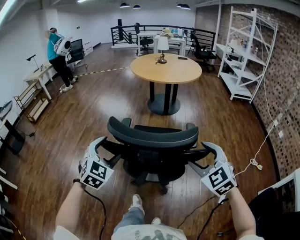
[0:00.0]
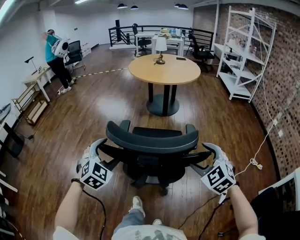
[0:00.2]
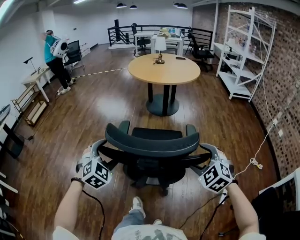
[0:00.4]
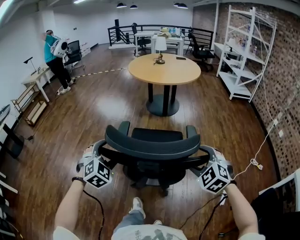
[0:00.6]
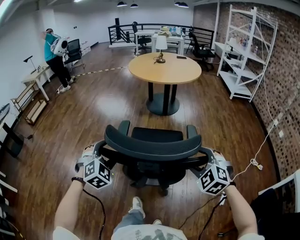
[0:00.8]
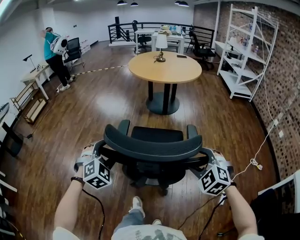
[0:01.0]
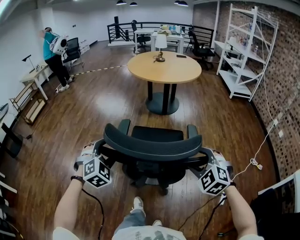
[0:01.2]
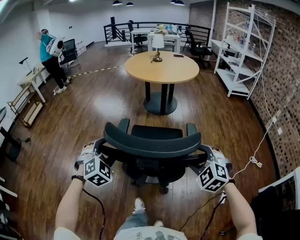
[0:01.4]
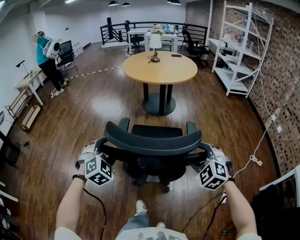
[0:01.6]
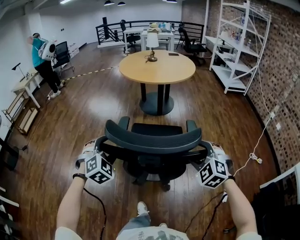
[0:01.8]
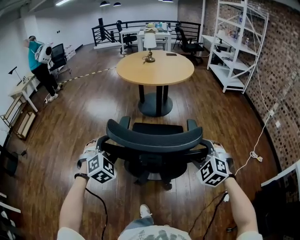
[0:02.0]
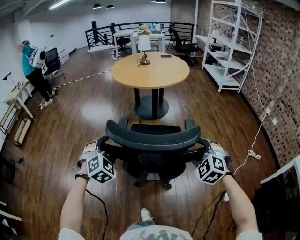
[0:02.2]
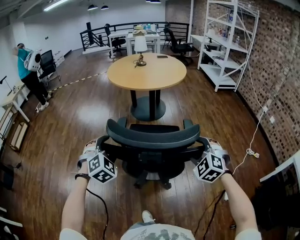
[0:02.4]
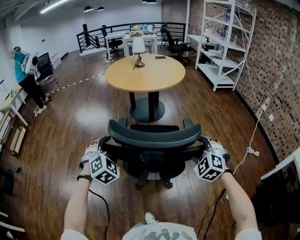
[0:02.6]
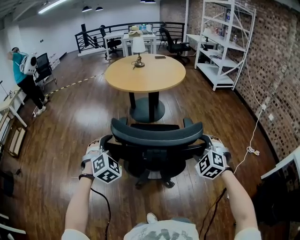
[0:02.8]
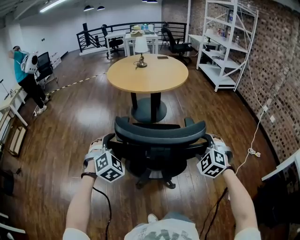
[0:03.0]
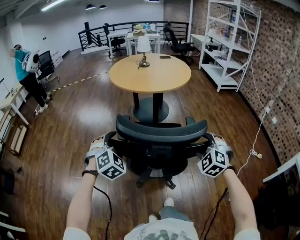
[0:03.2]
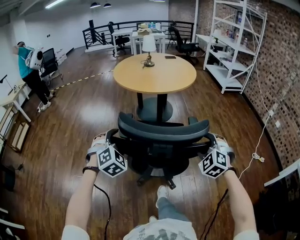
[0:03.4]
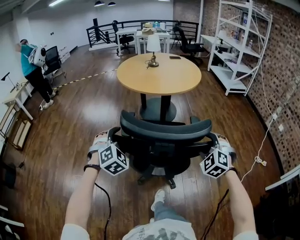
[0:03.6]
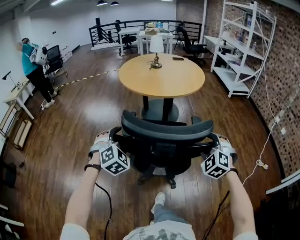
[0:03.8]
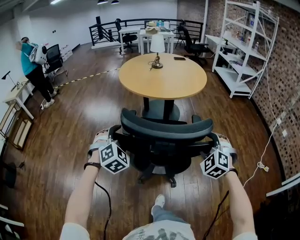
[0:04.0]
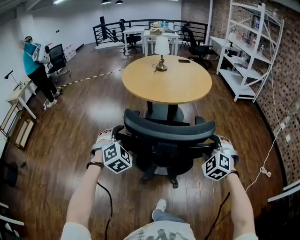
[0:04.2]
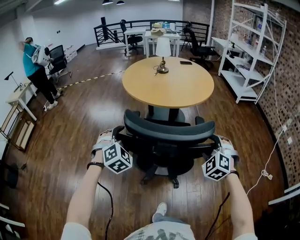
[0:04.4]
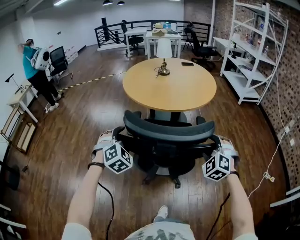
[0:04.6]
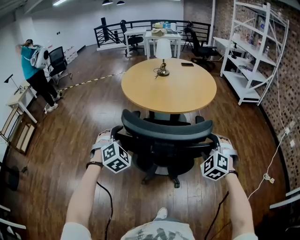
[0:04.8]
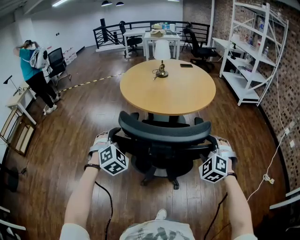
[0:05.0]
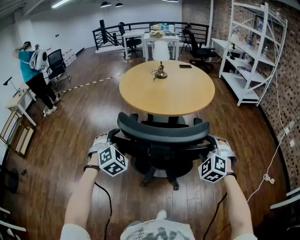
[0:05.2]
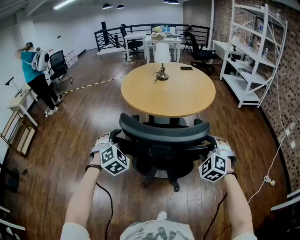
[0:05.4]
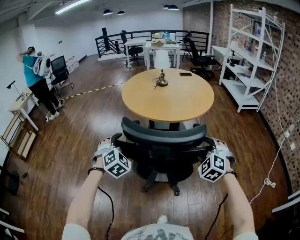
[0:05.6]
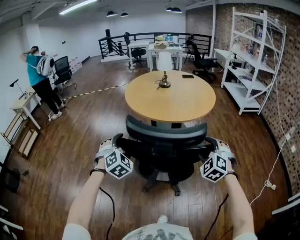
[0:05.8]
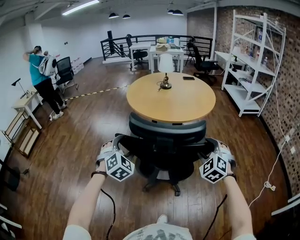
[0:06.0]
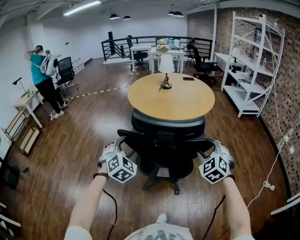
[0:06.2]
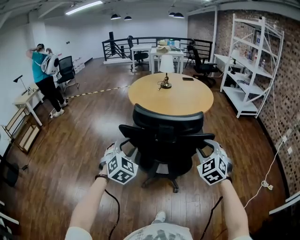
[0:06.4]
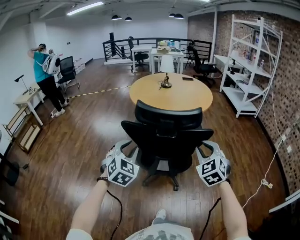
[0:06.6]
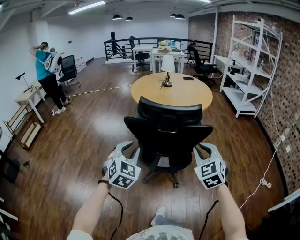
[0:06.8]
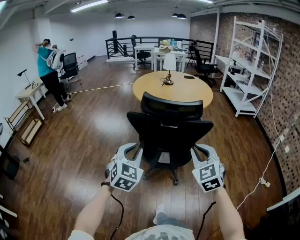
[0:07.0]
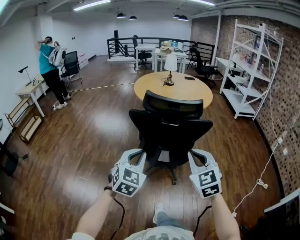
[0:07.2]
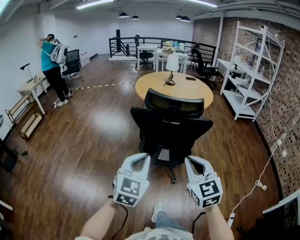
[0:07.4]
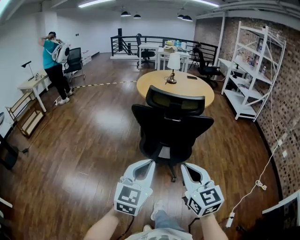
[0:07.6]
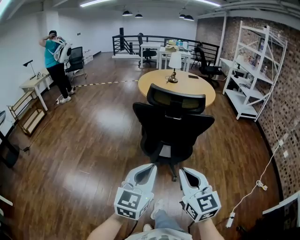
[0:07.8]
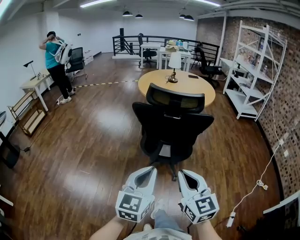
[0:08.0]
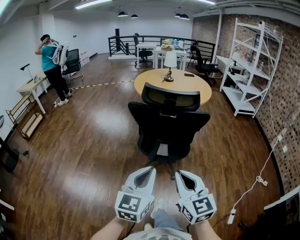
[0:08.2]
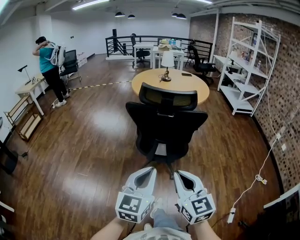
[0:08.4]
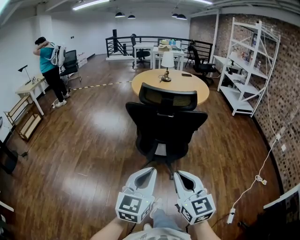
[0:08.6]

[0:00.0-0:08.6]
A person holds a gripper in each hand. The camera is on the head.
0:00.0 to 0:01.4: The right gripper goes approximately 10 cm forward and downward. Meanwhile the left gripper goes about 10 cm forward, and rotates roughly 20 degrees.
0:01.4 to 0:02.8: The two grippers go approximately 20 cm forward.
0:02.8 to 0:04.4: Both grippers move forward, roughly 25 cm.
0:04.4 to 0:05.8: The right gripper changes place by approximately 5 cm.
0:05.8 to 0:07.2: The left gripper heads backward, covering approximately 30 cm, turns by some 30 degrees, and closes, while the right gripper heads backward and to the left, covering approximately 30 cm, turns by about 40 degrees, and closes its fingers.
0:07.2 to 0:08.6: The left gripper is displaced backward and to the right by some 15 cm, and turns by approximately 30 degrees. Meanwhile the right gripper shifts approximately 15 cm backward, and swivels about 20 degrees.

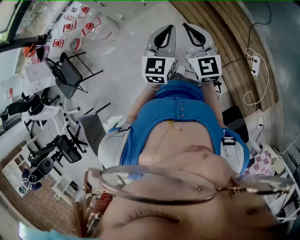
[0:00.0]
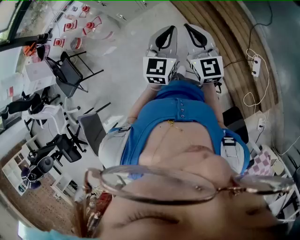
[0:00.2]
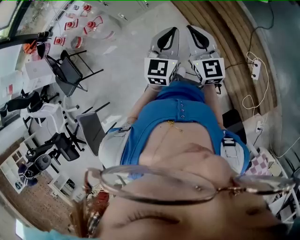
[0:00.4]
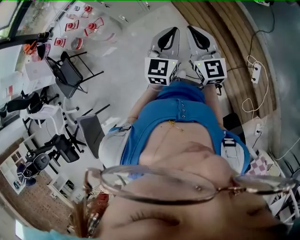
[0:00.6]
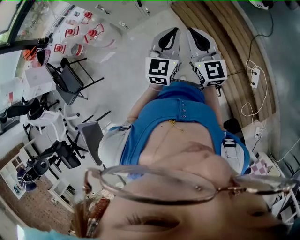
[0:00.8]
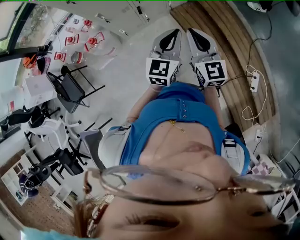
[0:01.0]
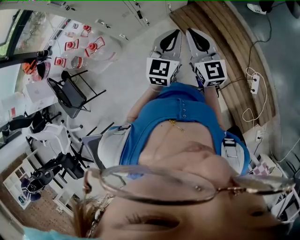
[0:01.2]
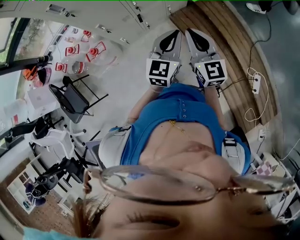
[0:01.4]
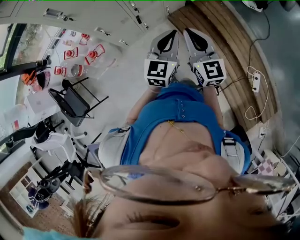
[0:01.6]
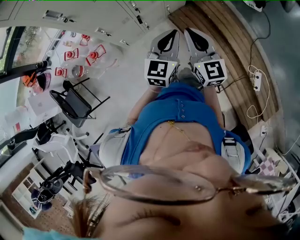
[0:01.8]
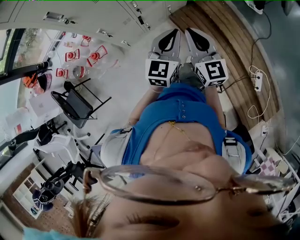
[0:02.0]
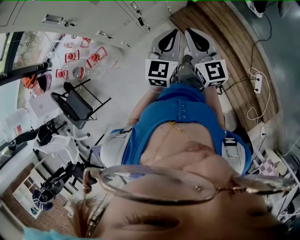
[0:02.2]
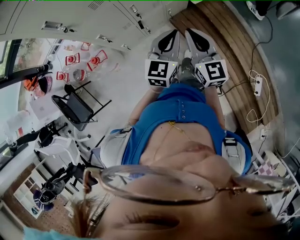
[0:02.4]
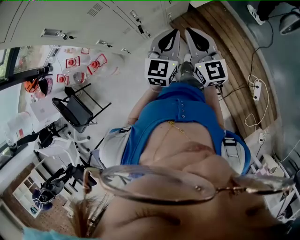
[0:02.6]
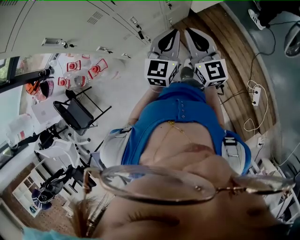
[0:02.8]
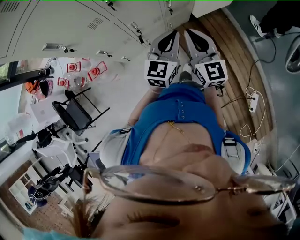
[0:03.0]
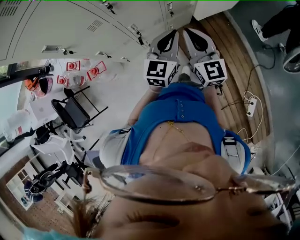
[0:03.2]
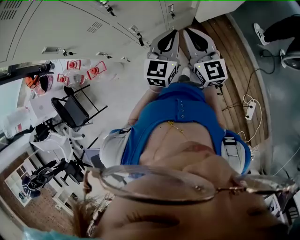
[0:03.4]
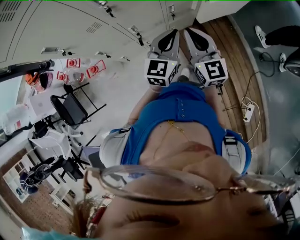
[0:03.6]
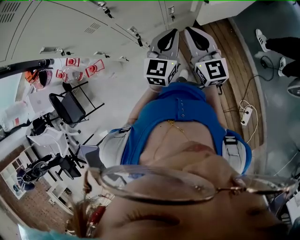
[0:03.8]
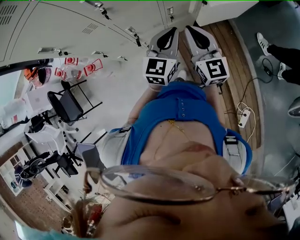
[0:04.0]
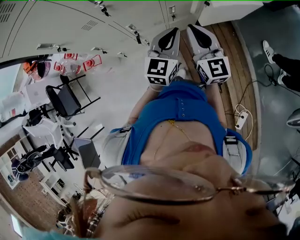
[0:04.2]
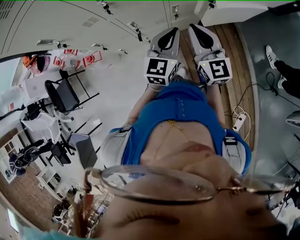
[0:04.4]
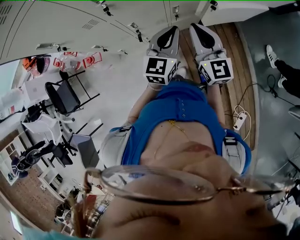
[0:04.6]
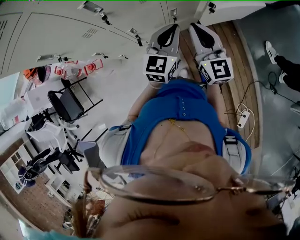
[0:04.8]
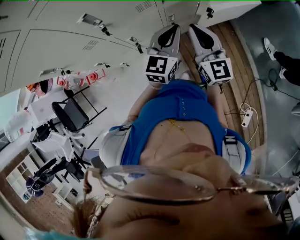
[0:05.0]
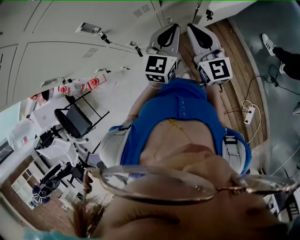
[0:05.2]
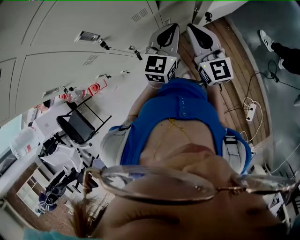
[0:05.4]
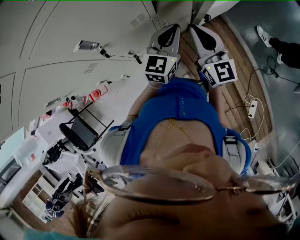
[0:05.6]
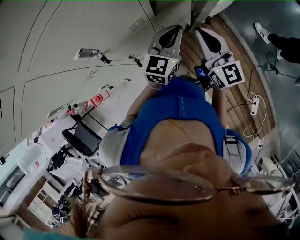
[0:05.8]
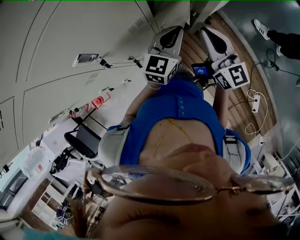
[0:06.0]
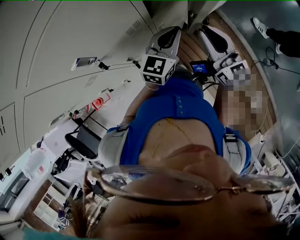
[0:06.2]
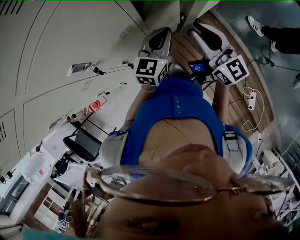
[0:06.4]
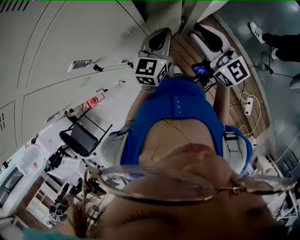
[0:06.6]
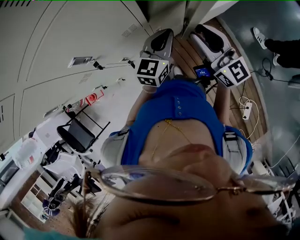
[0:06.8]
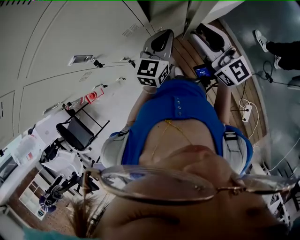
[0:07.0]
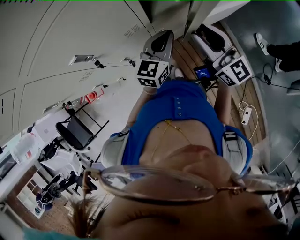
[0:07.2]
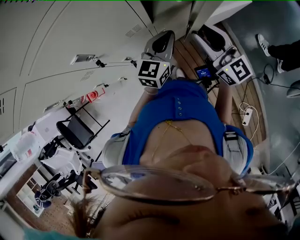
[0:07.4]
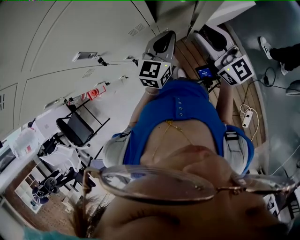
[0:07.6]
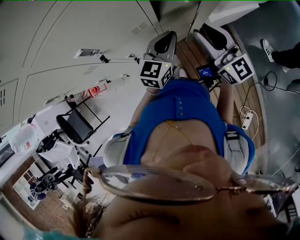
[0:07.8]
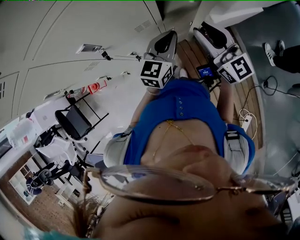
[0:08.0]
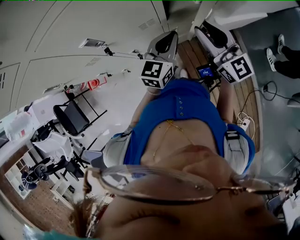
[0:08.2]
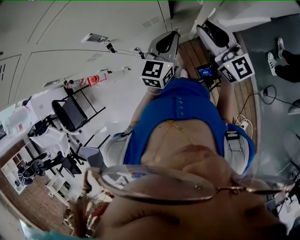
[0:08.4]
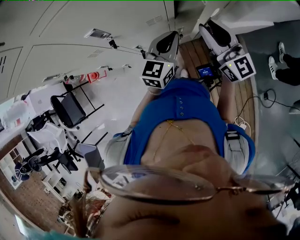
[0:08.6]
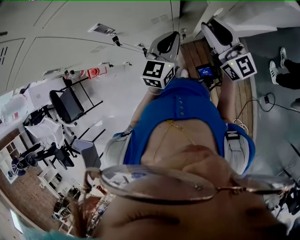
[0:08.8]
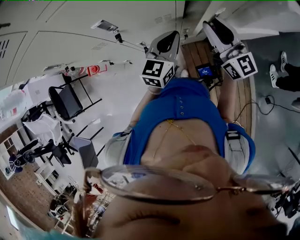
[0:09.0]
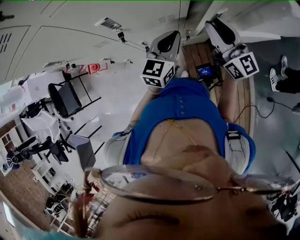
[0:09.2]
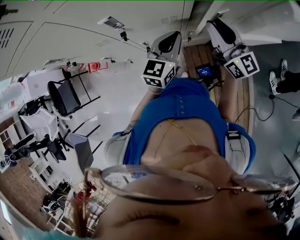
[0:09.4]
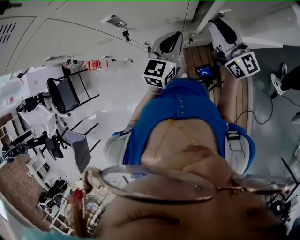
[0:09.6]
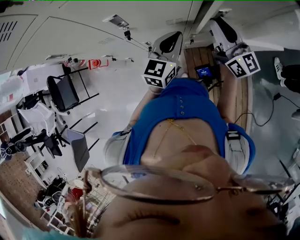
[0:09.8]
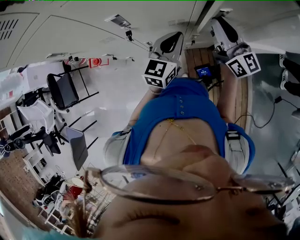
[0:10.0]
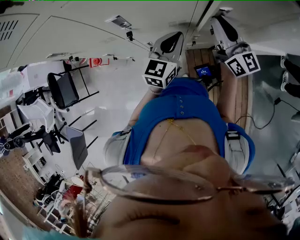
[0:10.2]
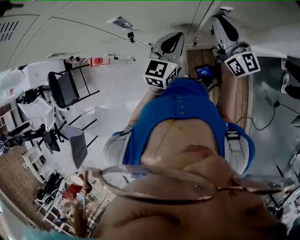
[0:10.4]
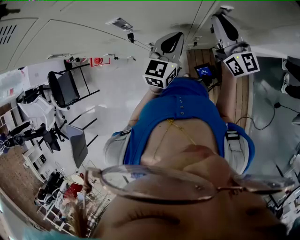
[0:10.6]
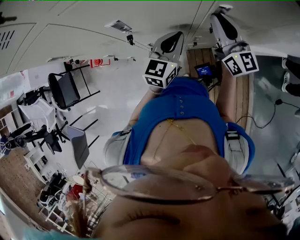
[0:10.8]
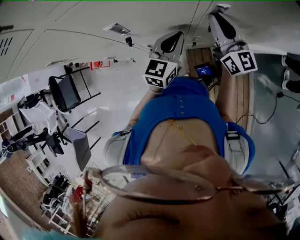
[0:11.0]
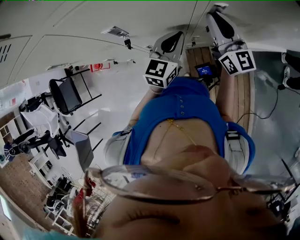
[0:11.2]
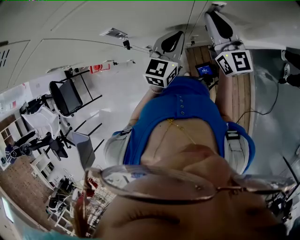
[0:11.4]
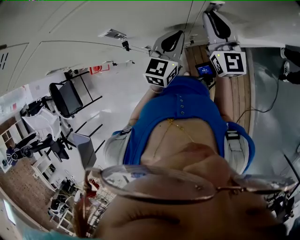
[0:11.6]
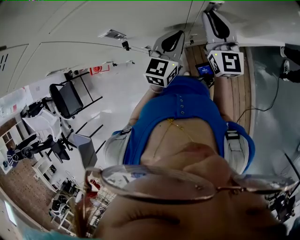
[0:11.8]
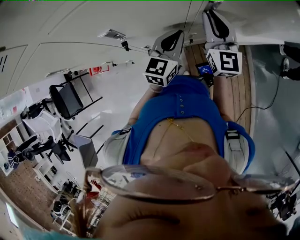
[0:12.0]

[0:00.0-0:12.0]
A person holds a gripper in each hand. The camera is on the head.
0:00.0 to 0:01.6: Both grippers travel together forward, approximately 20 cm.
0:01.6 to 0:03.0: Both grippers travel together forward, about 20 cm.
0:03.0 to 0:04.4: The right gripper travels forward and to the right by approximately 15 cm, while the left gripper shifts approximately 10 cm forward.
0:04.4 to 0:06.0: Both grippers move forward, about 10 cm. The left gripper swivels roughly 30 degrees.
0:06.0 to 0:07.6: The right gripper shifts by approximately 5 cm, turns by some 20 degrees, and opens up.
0:07.6 to 0:09.0: The left gripper goes some 10 cm to the left. The right gripper goes some 10 cm to the left and forward.
0:09.0 to 0:10.4: The right gripper heads forward, covering roughly 5 cm.
0:10.4 to 0:12.0: The right gripper changes its angle by approximately 30 degrees.

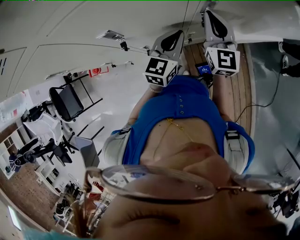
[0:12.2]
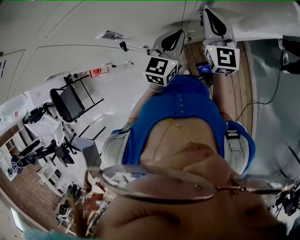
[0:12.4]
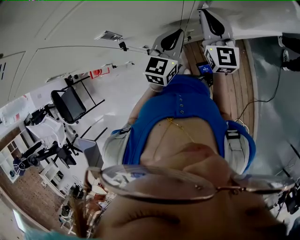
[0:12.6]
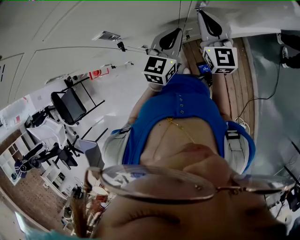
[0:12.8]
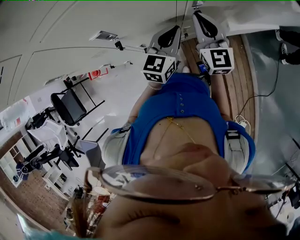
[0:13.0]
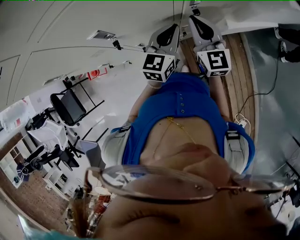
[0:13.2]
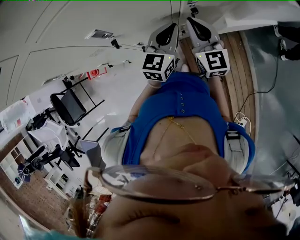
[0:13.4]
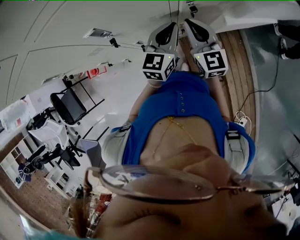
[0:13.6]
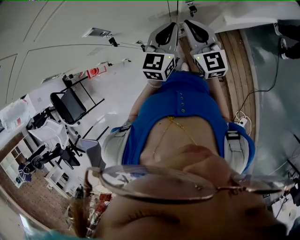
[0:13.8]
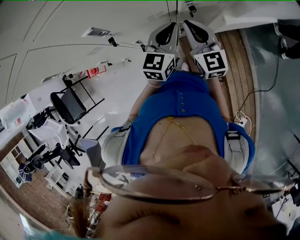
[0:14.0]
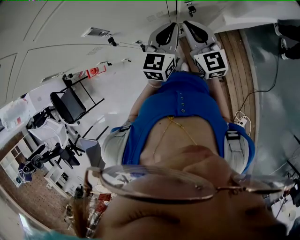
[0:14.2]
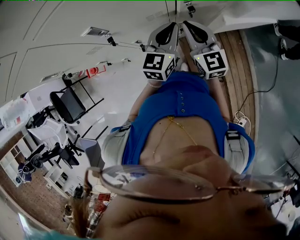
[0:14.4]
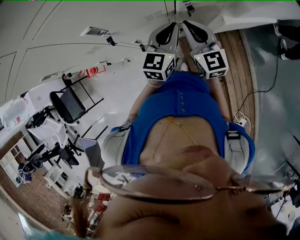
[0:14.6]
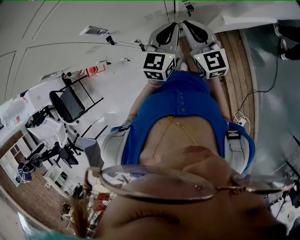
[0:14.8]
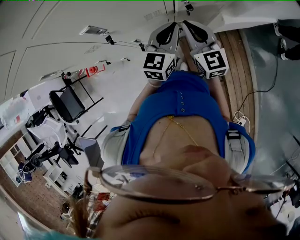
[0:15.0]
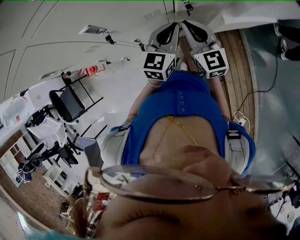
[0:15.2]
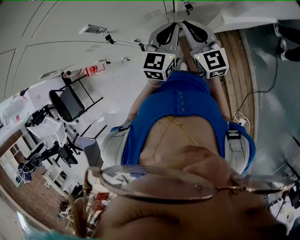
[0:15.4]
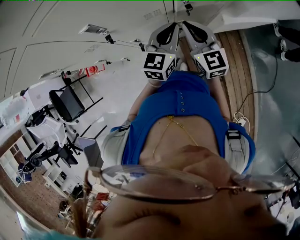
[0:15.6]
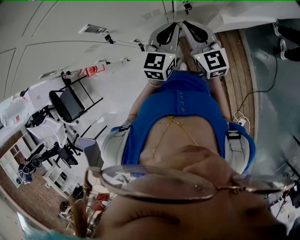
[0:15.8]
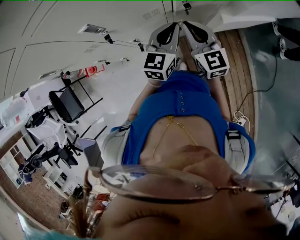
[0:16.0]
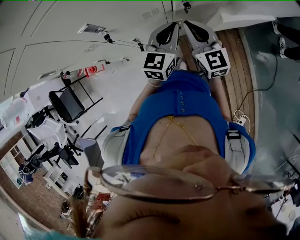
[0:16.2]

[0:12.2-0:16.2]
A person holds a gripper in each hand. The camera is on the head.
0:12.2 to 0:13.6: The right gripper is displaced backward and downward by some 10 cm.
0:13.6 to 0:16.2: There are only small adjustments of the grippers.
